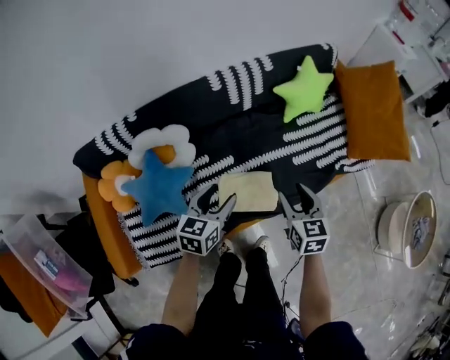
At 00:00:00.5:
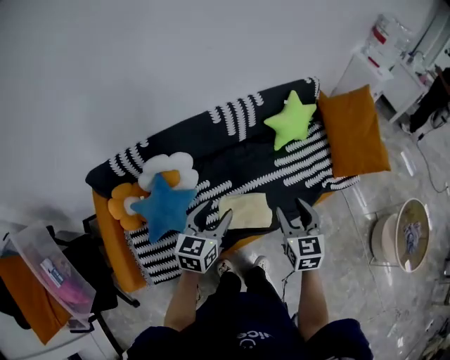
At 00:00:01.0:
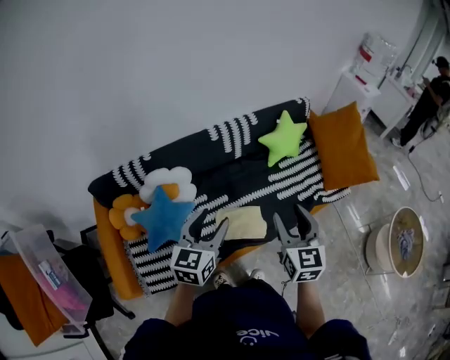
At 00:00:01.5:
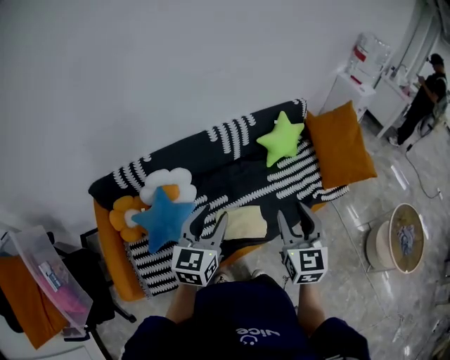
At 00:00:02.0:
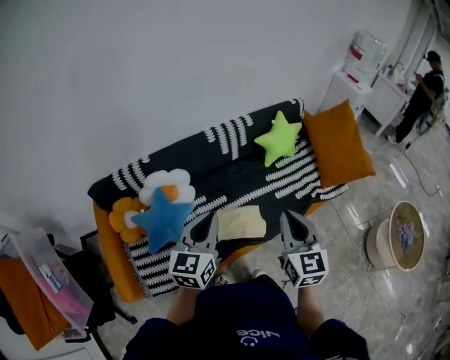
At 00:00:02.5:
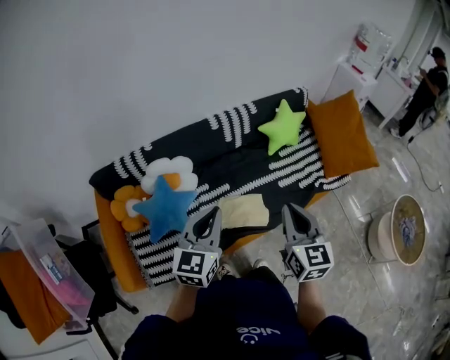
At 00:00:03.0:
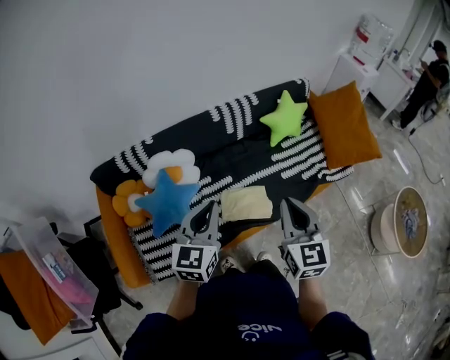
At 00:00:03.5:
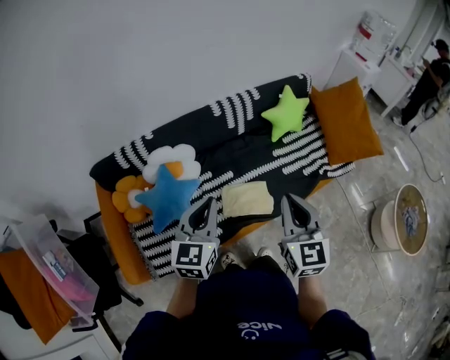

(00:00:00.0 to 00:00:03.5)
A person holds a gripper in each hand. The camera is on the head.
00:00:00.0 - 00:00:02.0: Both grippers move upward and backward, approximately 25 cm. The left gripper rotates some 20 degrees, and closes up, while the right gripper turns by about 20 degrees, and closes its fingers.
00:00:02.0 - 00:00:03.5: The grippers stay close to where they were, moving slightly.

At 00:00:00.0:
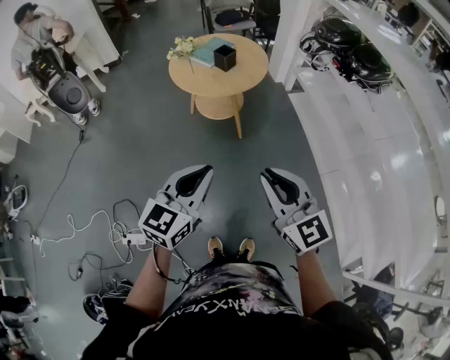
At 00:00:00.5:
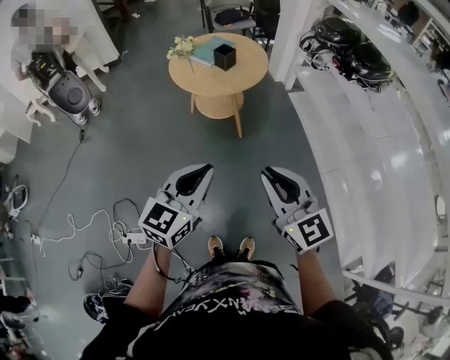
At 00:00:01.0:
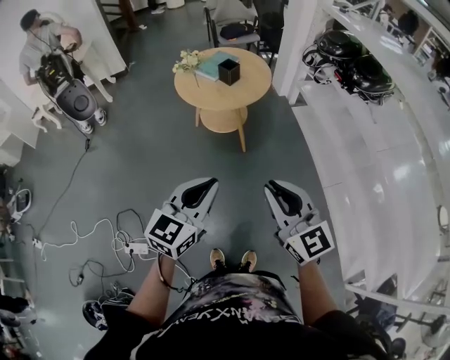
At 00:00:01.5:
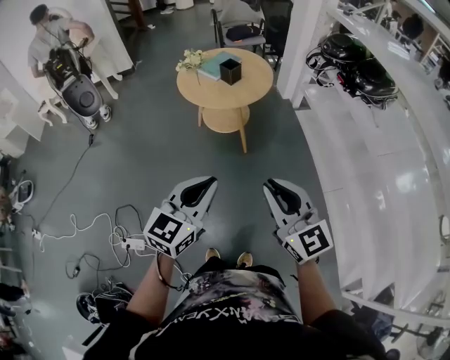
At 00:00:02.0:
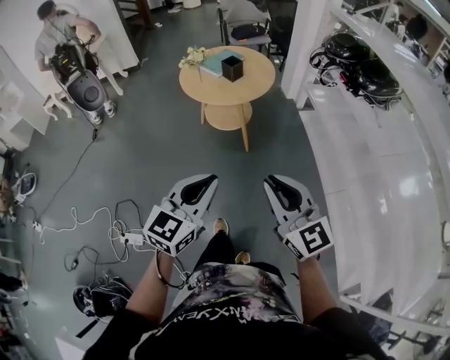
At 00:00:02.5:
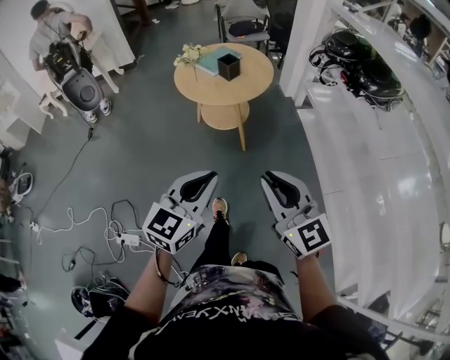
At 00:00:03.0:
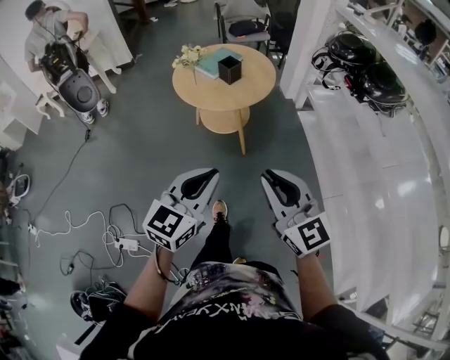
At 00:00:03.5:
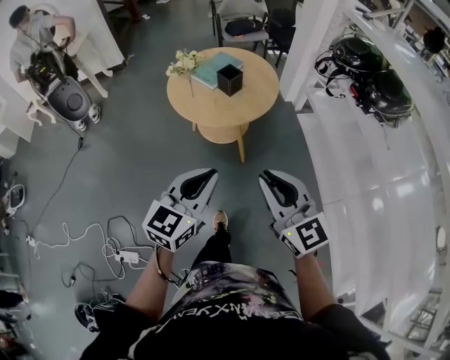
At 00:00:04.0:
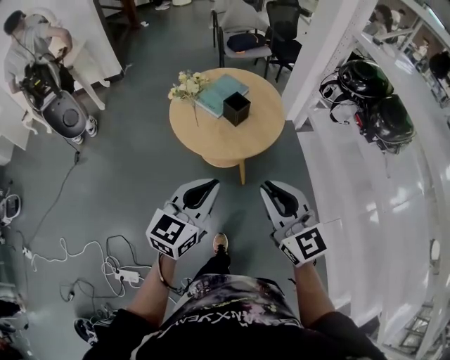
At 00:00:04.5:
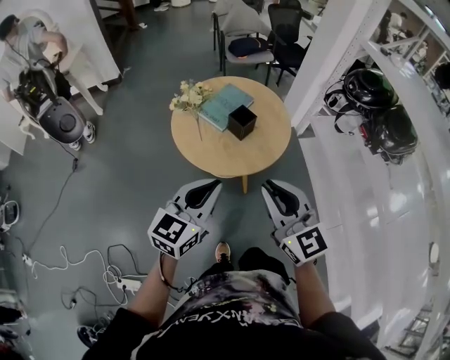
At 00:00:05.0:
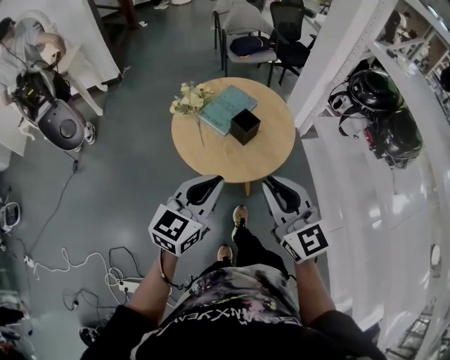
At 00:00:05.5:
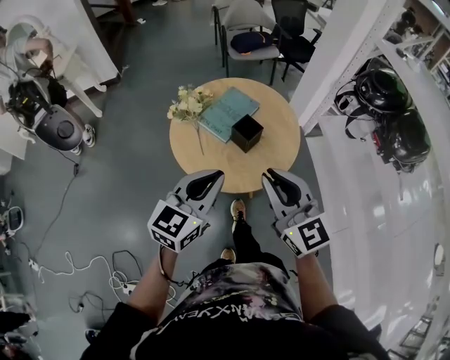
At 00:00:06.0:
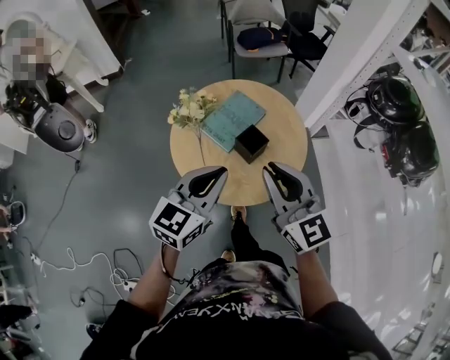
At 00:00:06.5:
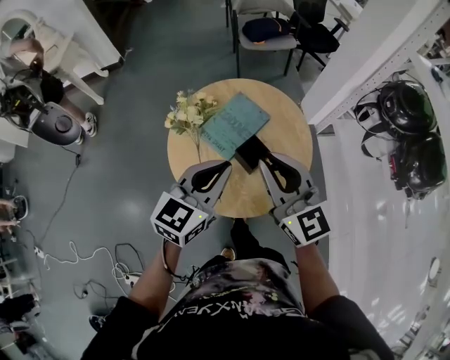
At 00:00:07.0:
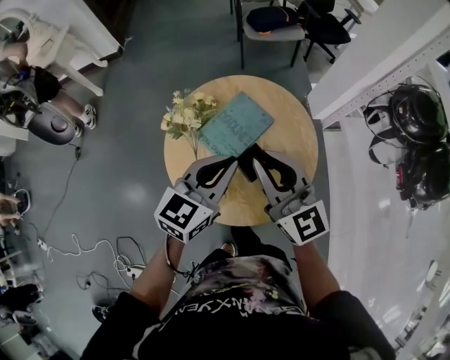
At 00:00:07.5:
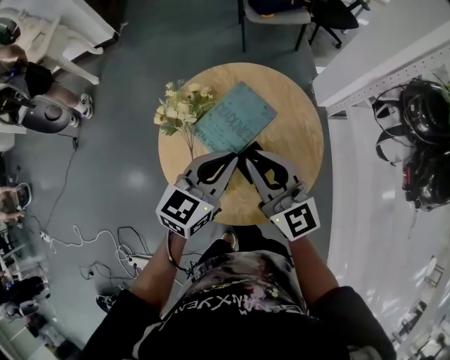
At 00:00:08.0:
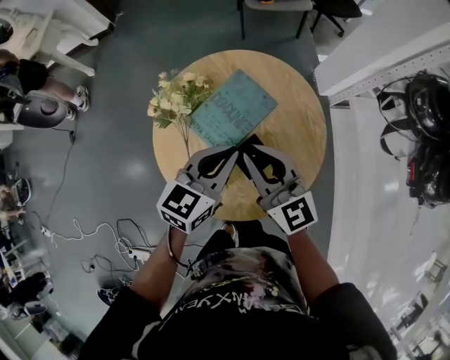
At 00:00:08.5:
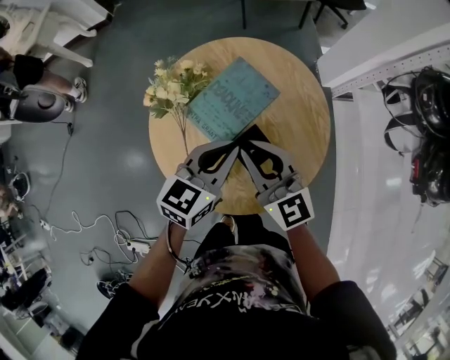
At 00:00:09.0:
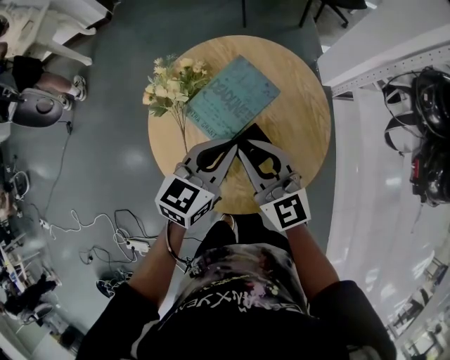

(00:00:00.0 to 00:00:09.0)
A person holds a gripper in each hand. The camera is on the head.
00:00:00.0 - 00:00:02.0: Both grippers move to the right, approximately 5 cm.
00:00:02.0 - 00:00:04.5: The two grippers travel together, forward, some 40 cm.
00:00:04.5 - 00:00:07.0: The grippers both shift forward by roughly 35 cm.
00:00:07.0 - 00:00:09.0: Both grippers travel together downward, roughly 10 cm.

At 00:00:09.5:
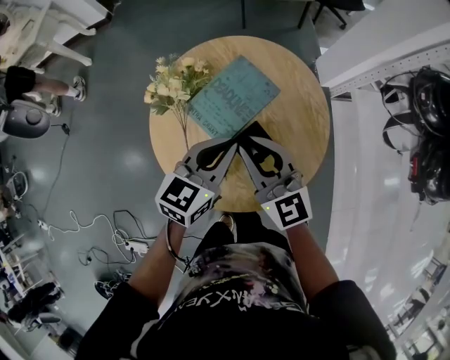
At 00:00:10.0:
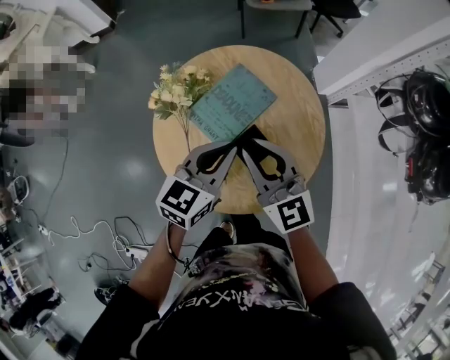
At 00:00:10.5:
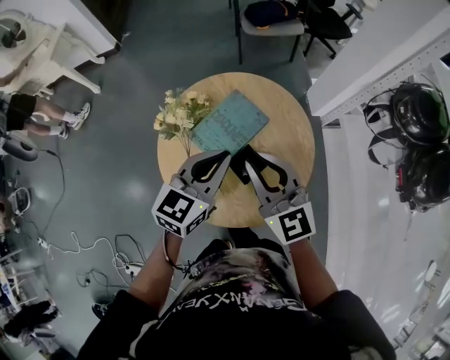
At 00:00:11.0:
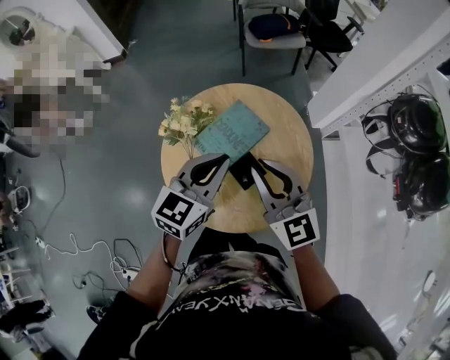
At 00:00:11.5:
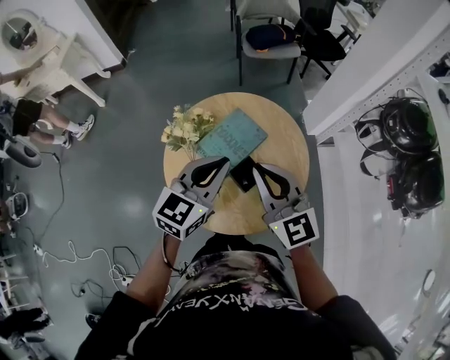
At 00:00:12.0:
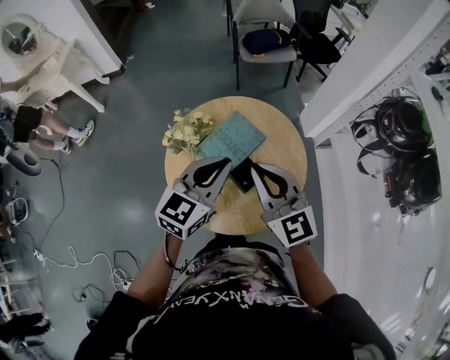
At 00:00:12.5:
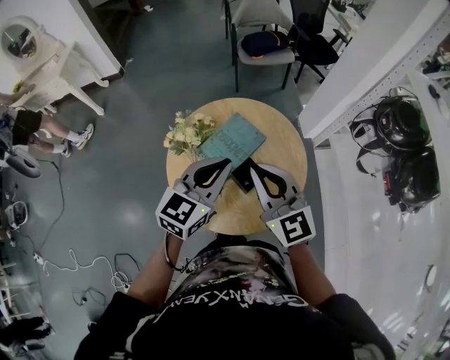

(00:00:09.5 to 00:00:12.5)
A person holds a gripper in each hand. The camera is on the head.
00:00:09.5 - 00:00:11.0: The grippers both shift upward by some 10 cm.
00:00:11.0 - 00:00:12.5: The left gripper changes place by roughly 5 cm. Meanwhile the right gripper changes place by approximately 5 cm.

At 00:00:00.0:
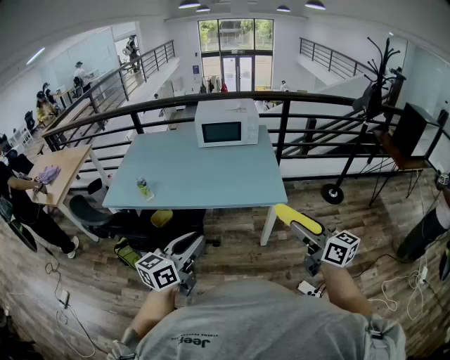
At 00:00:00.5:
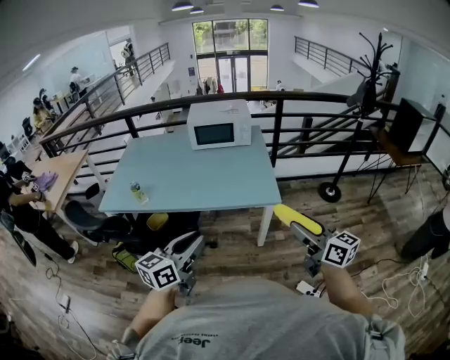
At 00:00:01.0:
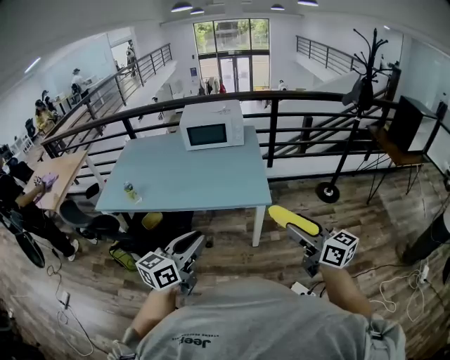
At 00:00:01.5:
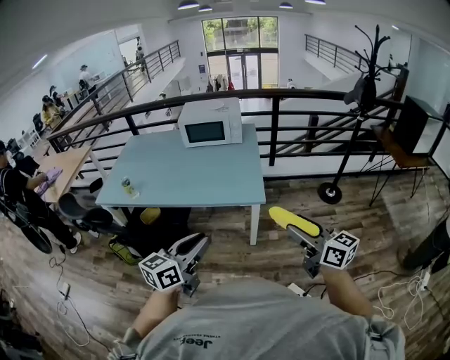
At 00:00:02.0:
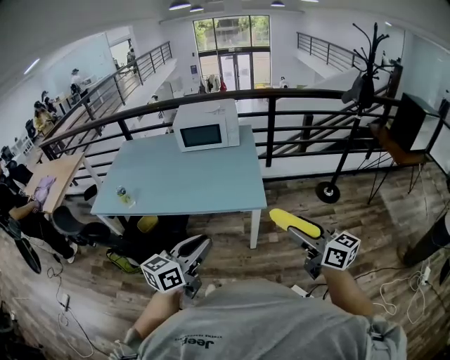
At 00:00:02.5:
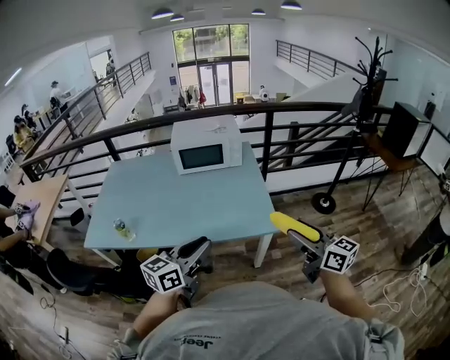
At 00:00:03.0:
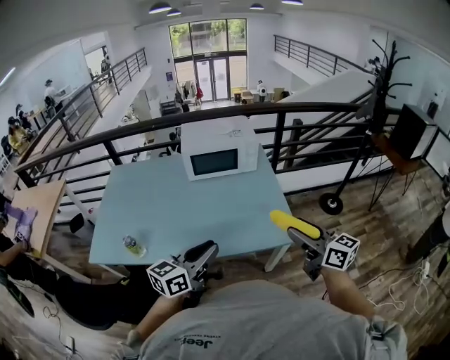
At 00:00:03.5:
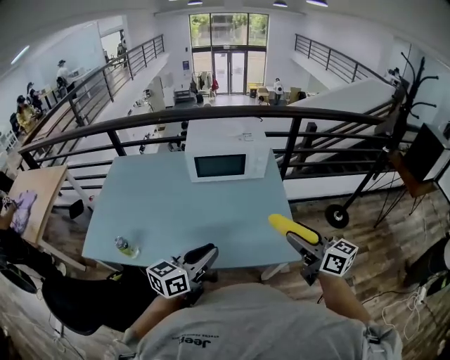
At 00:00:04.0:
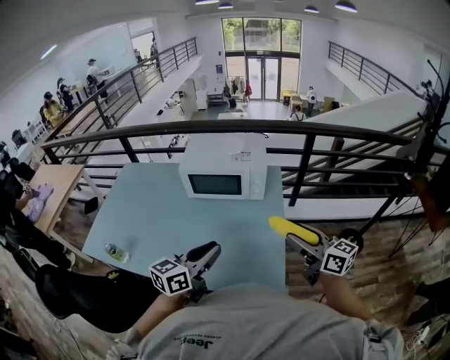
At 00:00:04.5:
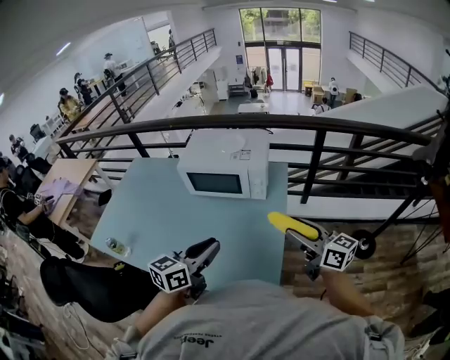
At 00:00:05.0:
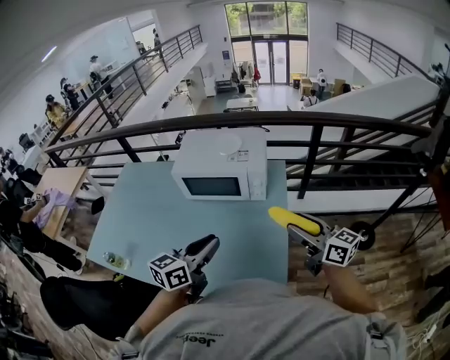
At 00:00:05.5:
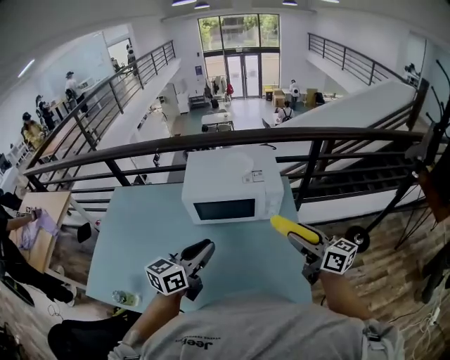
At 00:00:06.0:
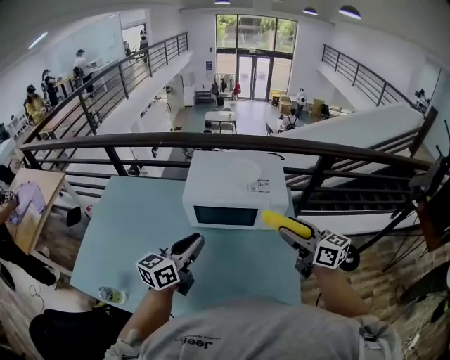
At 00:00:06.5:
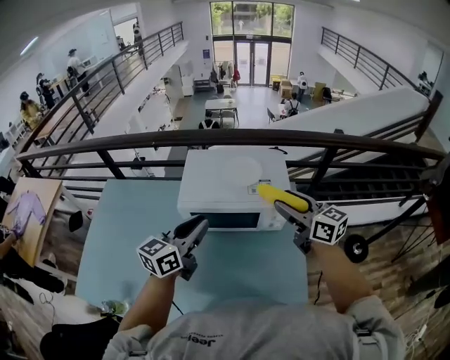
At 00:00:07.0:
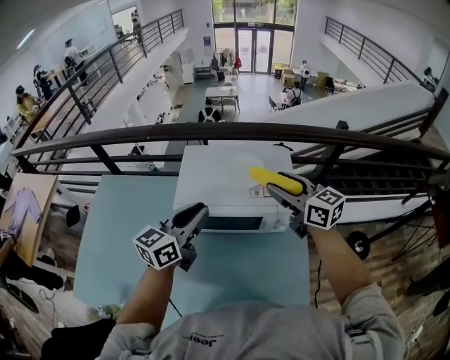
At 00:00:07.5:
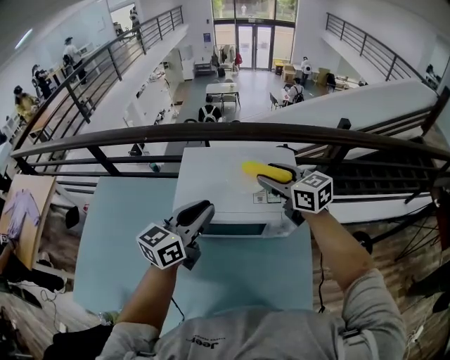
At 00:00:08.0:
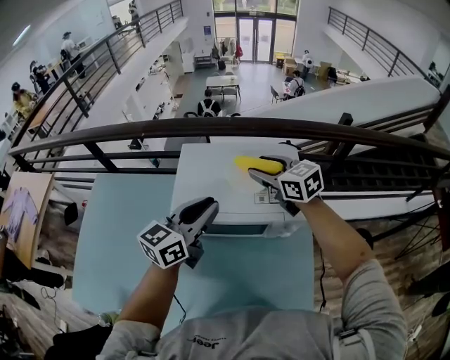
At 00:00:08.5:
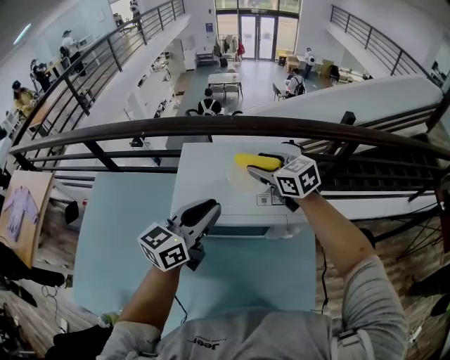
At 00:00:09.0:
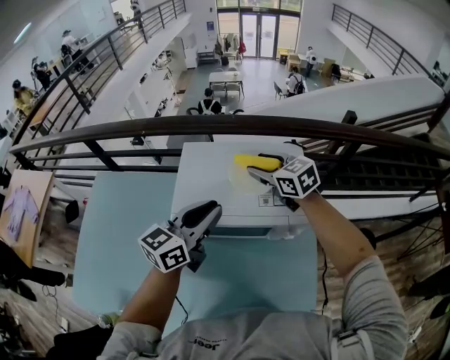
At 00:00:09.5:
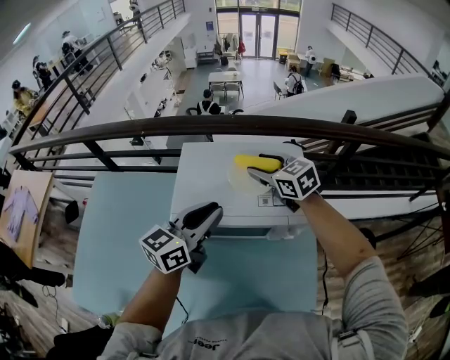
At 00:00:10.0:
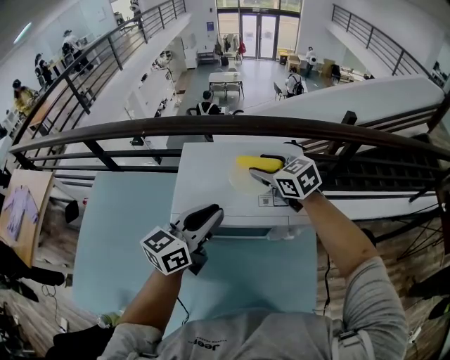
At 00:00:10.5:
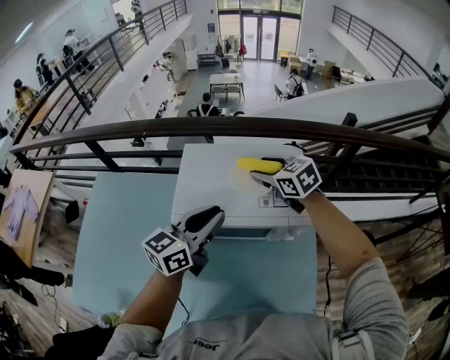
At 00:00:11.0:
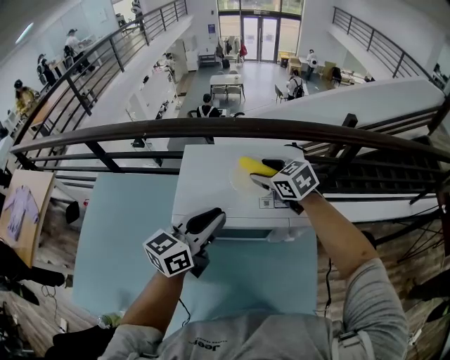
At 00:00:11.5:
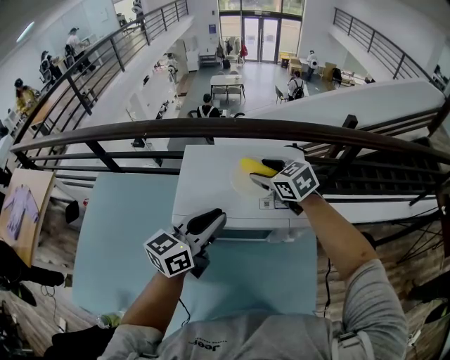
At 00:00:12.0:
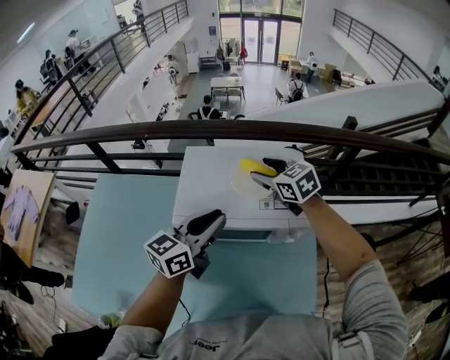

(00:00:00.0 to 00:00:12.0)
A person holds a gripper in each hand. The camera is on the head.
00:00:00.0 - 00:00:02.0: The two grippers go approximately 15 cm to the right.
00:00:02.0 - 00:00:04.0: Both grippers are carried forward, about 40 cm.
00:00:04.0 - 00:00:06.0: The two grippers go roughly 25 cm forward and to the left.
00:00:06.0 - 00:00:08.0: The right gripper goes approximately 30 cm forward, and rotates approximately 20 degrees. The left gripper shifts approximately 20 cm forward.
00:00:08.0 - 00:00:12.0: The grippers make only small movements.
